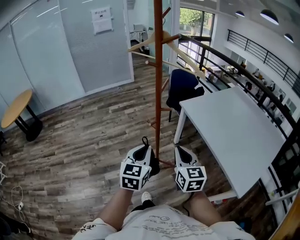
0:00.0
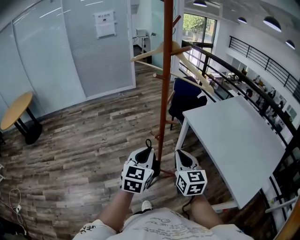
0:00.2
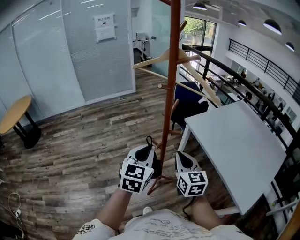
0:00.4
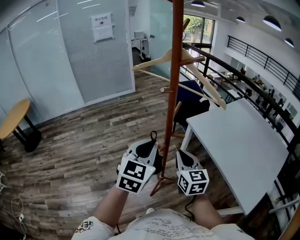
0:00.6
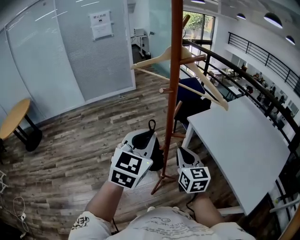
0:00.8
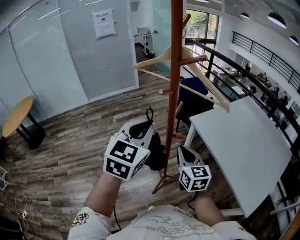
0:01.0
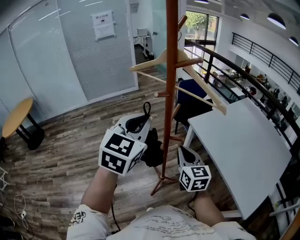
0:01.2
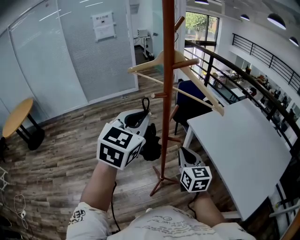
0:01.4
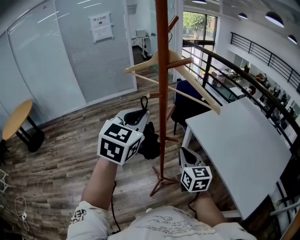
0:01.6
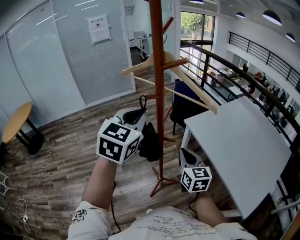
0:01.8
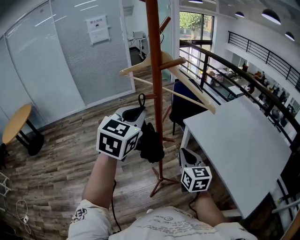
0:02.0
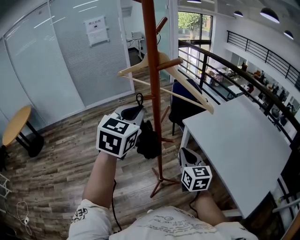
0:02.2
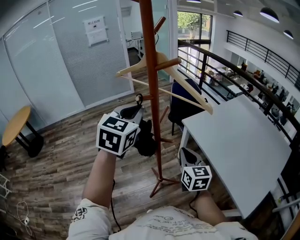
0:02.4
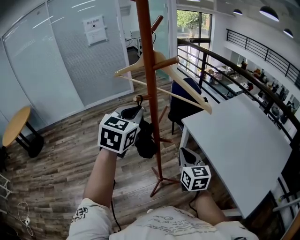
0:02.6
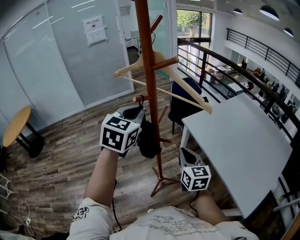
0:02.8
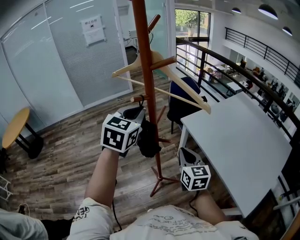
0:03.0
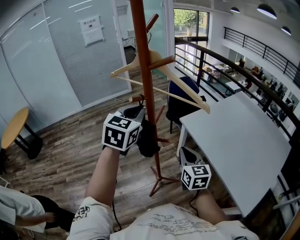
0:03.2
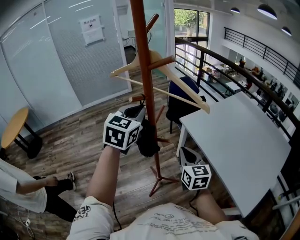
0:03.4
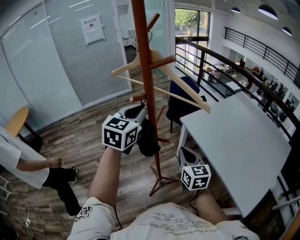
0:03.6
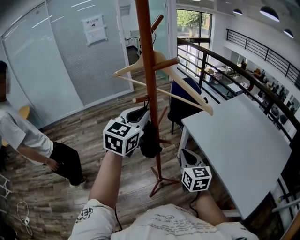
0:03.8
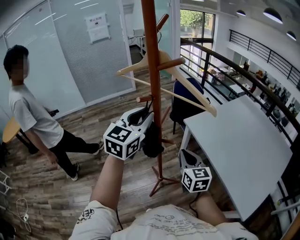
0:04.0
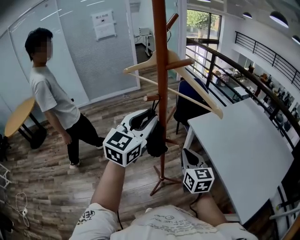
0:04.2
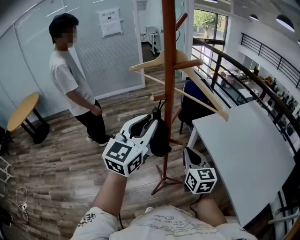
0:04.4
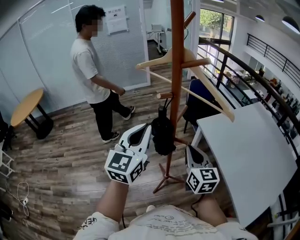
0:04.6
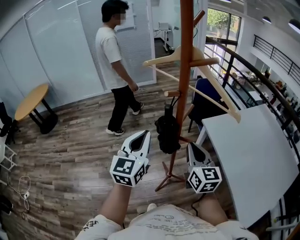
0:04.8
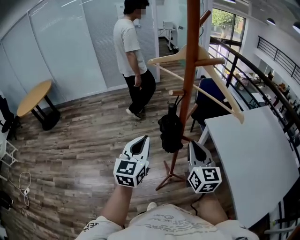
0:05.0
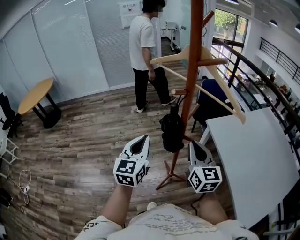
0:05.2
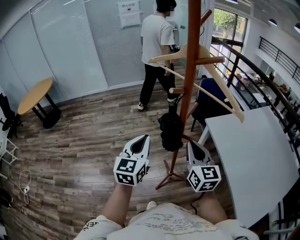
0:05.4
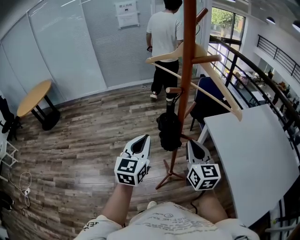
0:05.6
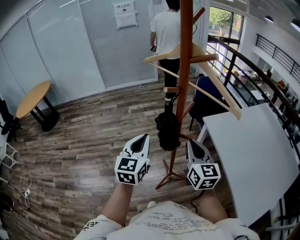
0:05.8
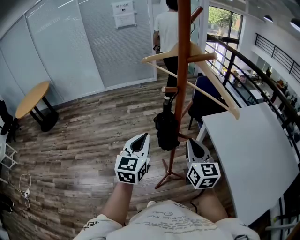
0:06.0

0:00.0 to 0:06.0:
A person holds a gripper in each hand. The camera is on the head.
0:00.0 to 0:01.6: The left gripper travels forward and upward by about 30 cm, while the right gripper shifts approximately 20 cm forward.
0:01.6 to 0:03.0: The left gripper moves forward, approximately 5 cm.
0:03.0 to 0:04.4: The left gripper travels backward by roughly 5 cm, and turns by approximately 20 degrees.
0:04.4 to 0:06.0: The left gripper goes roughly 15 cm downward and to the left, and swivels approximately 20 degrees.

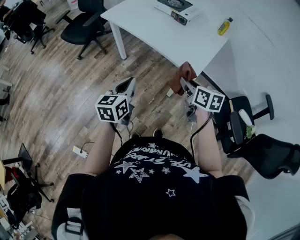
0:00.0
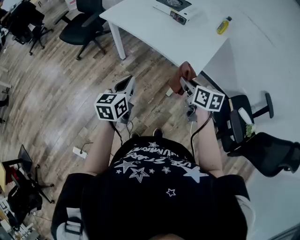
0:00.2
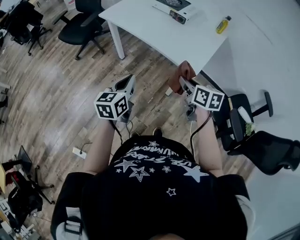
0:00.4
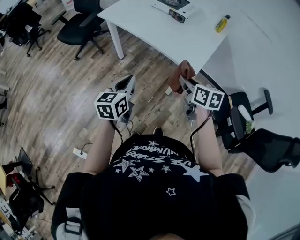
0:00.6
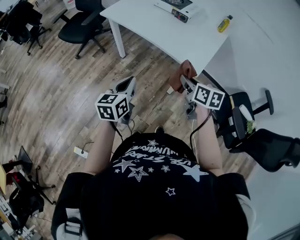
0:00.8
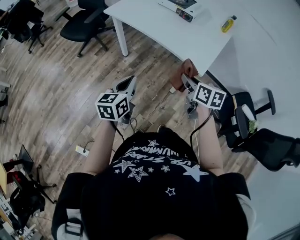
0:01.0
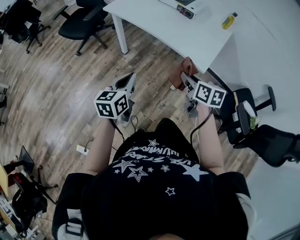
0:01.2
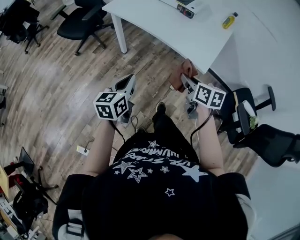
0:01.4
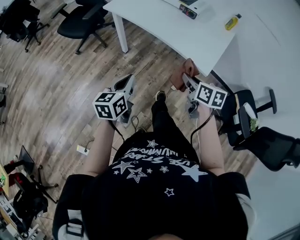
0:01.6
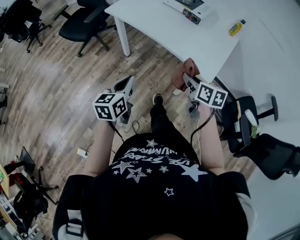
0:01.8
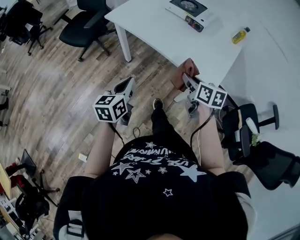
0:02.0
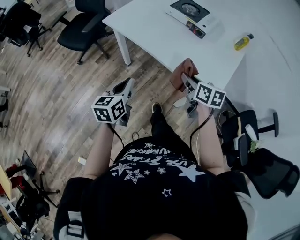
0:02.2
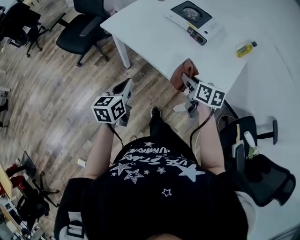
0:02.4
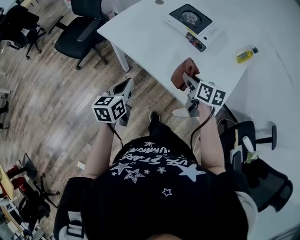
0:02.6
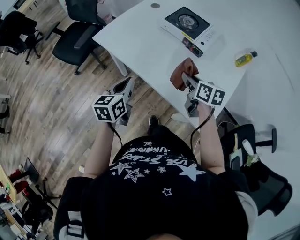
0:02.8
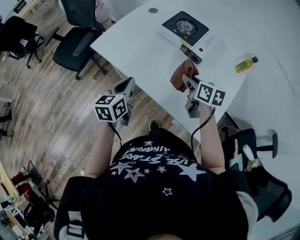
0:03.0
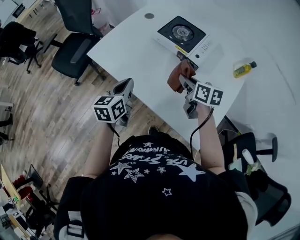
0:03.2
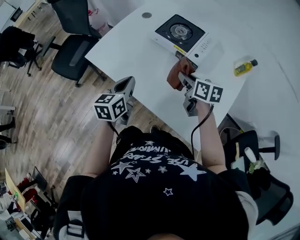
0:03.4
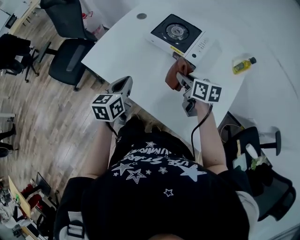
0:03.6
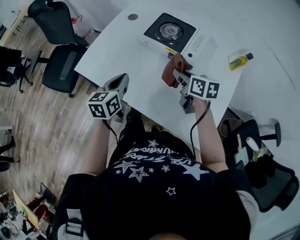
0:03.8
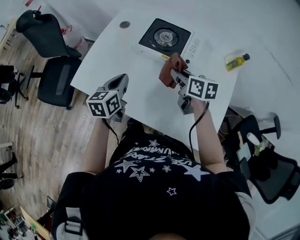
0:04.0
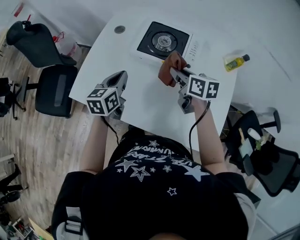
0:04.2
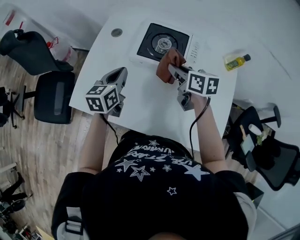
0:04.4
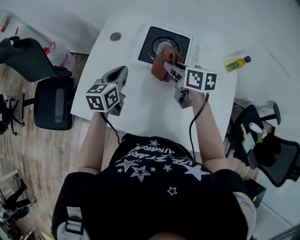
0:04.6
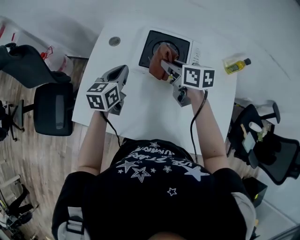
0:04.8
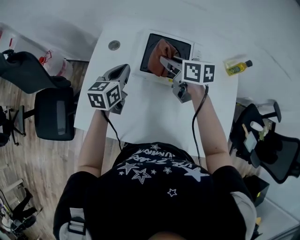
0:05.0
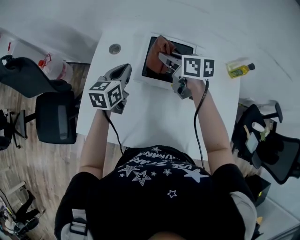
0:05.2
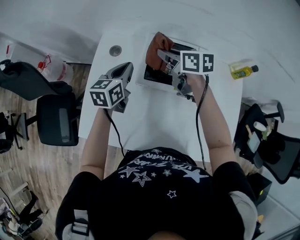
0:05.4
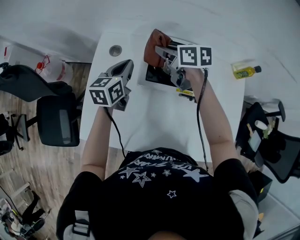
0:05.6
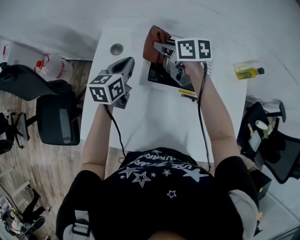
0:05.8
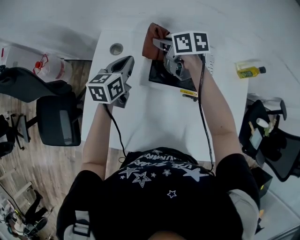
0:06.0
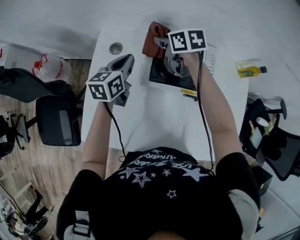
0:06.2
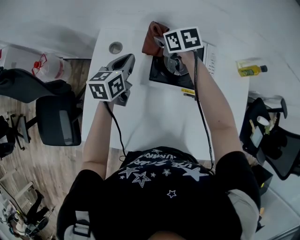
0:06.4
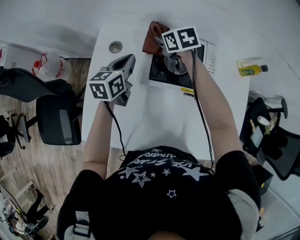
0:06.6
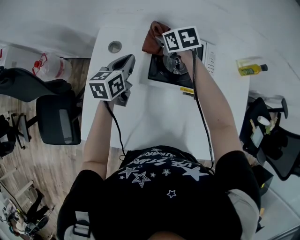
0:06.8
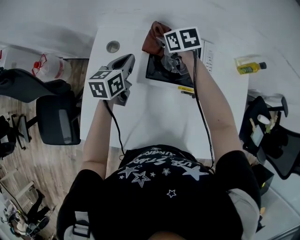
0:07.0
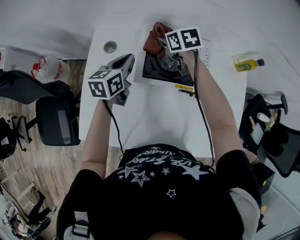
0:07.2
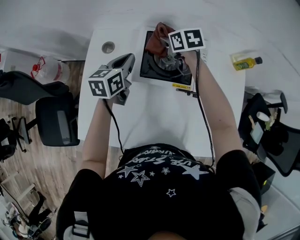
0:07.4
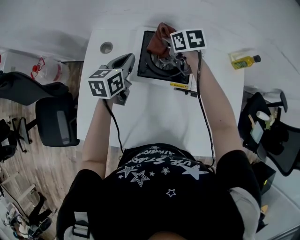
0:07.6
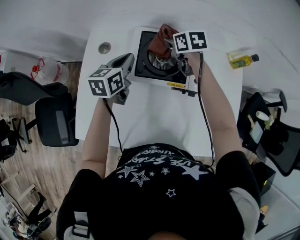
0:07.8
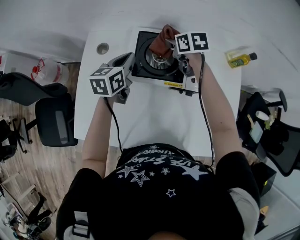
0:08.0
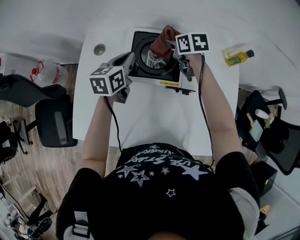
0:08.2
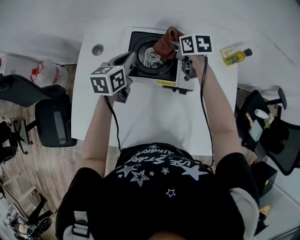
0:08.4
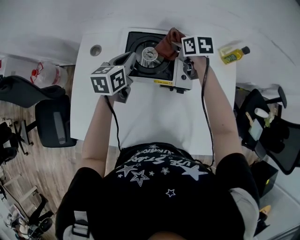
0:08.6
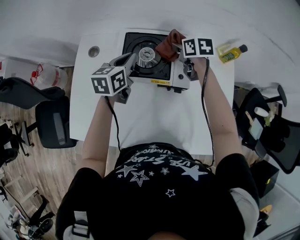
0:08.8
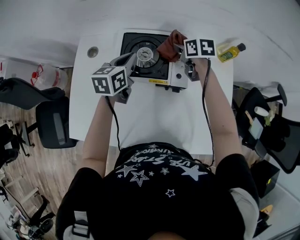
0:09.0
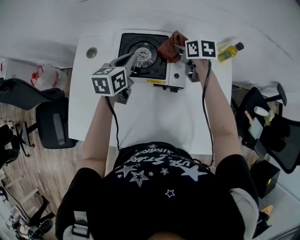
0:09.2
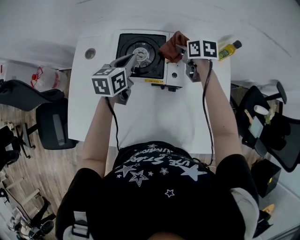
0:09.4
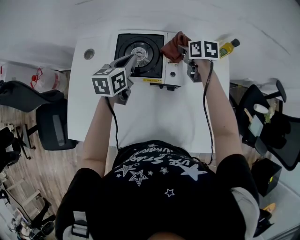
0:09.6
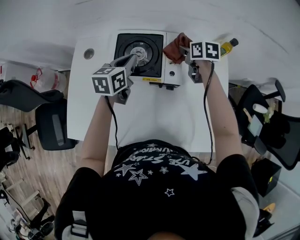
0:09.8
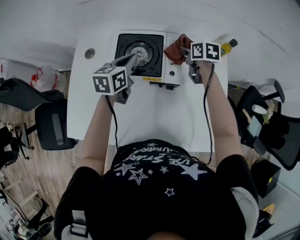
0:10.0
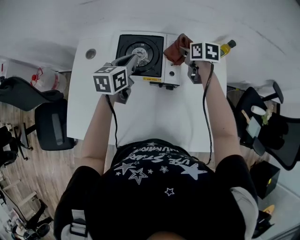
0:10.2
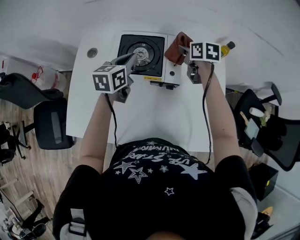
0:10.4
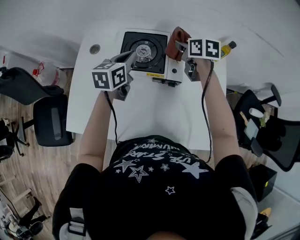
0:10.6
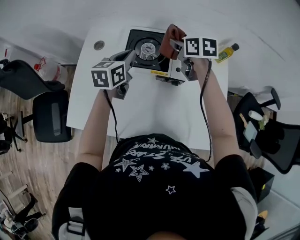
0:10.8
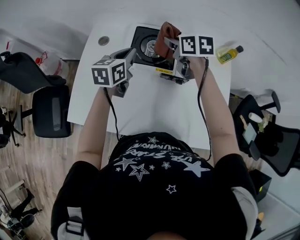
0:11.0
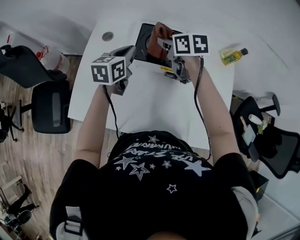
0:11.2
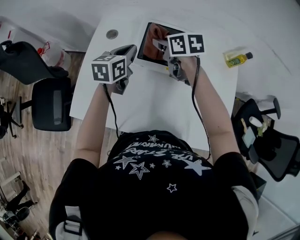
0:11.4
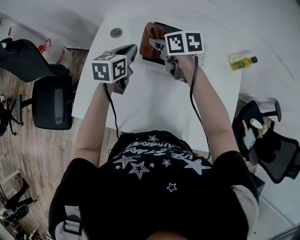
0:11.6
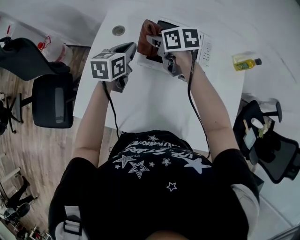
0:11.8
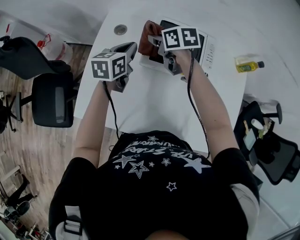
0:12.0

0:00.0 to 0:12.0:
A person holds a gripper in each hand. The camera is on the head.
0:00.0 to 0:01.6: The two grippers go approximately 10 cm to the left.
0:01.6 to 0:03.0: The grippers both shift forward by approximately 40 cm.
0:03.0 to 0:04.4: Both grippers move forward, approximately 25 cm. The left gripper turns by roughly 20 degrees.
0:04.4 to 0:06.0: Both grippers travel together forward, roughly 20 cm.
0:06.0 to 0:07.6: The left gripper heads to the right, covering roughly 5 cm. The right gripper moves to the right, some 10 cm.
0:07.6 to 0:09.0: Both grippers move to the right, approximately 10 cm.
0:09.0 to 0:10.4: The right gripper moves about 5 cm.
0:10.4 to 0:12.0: The right gripper is displaced to the left by about 30 cm, and turns by roughly 30 degrees. Meanwhile the left gripper shifts approximately 15 cm to the left.

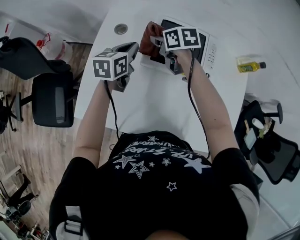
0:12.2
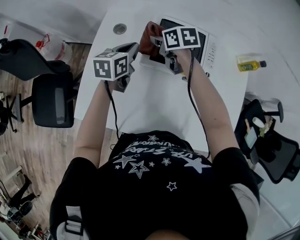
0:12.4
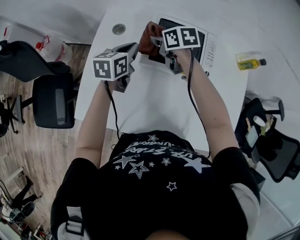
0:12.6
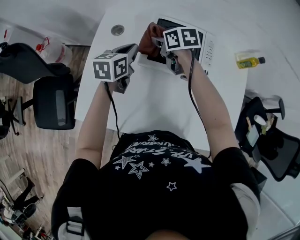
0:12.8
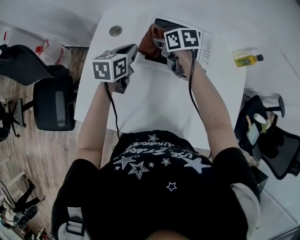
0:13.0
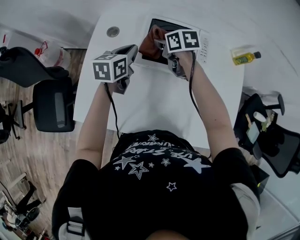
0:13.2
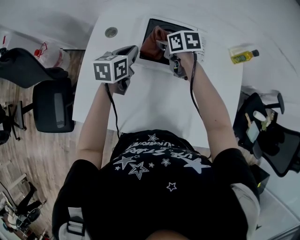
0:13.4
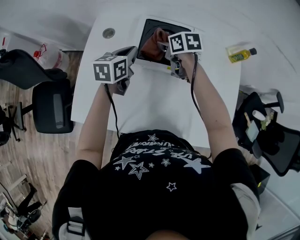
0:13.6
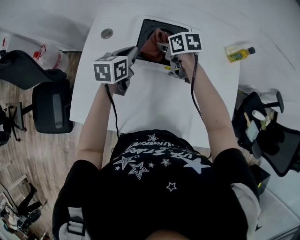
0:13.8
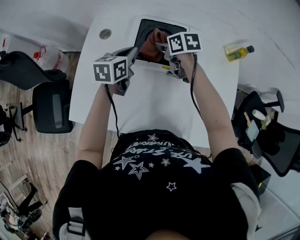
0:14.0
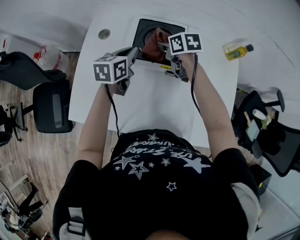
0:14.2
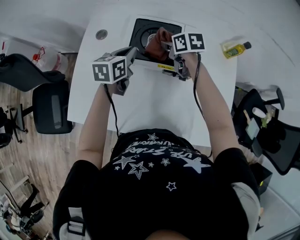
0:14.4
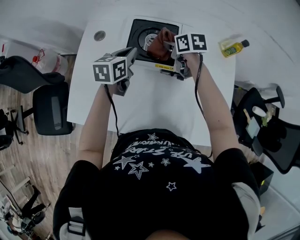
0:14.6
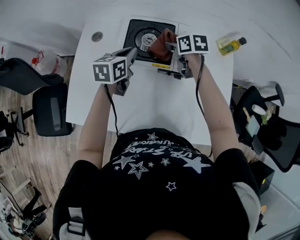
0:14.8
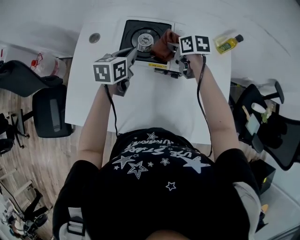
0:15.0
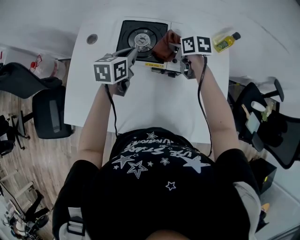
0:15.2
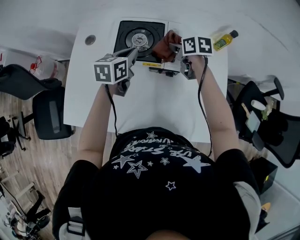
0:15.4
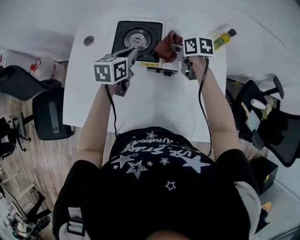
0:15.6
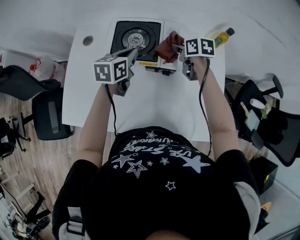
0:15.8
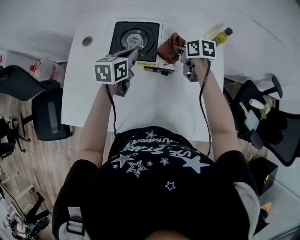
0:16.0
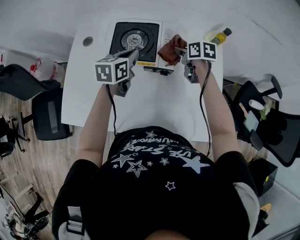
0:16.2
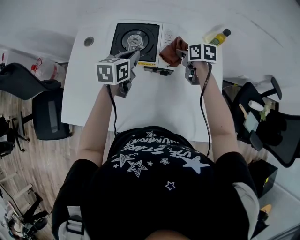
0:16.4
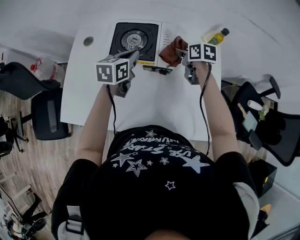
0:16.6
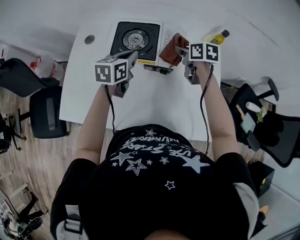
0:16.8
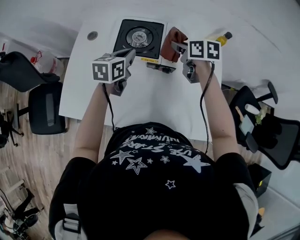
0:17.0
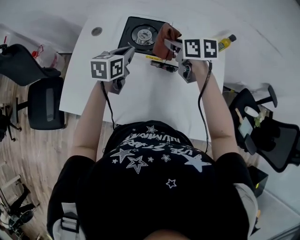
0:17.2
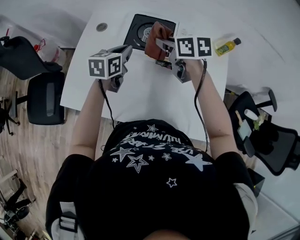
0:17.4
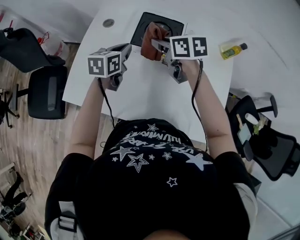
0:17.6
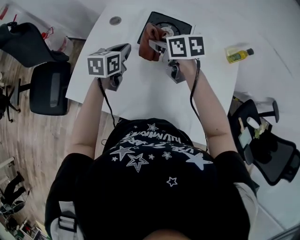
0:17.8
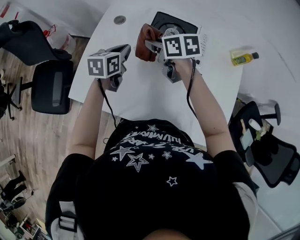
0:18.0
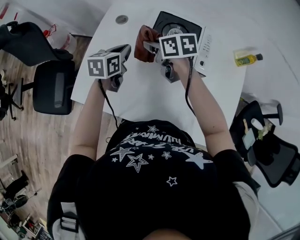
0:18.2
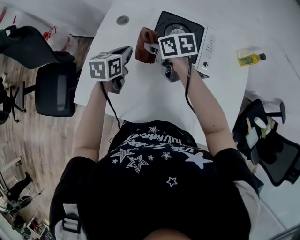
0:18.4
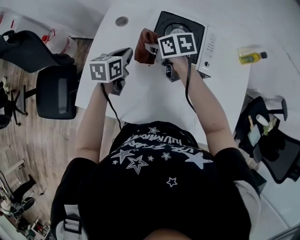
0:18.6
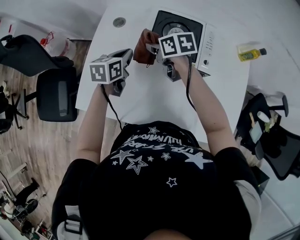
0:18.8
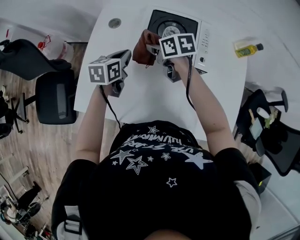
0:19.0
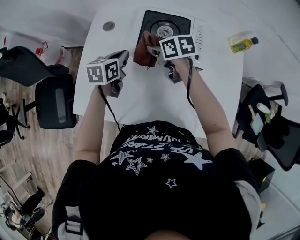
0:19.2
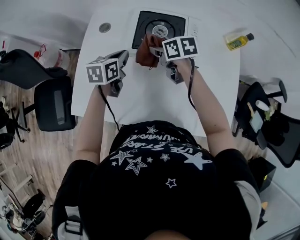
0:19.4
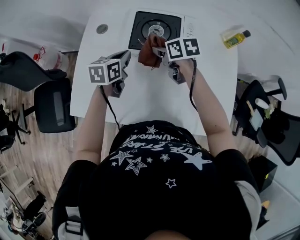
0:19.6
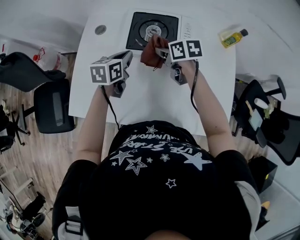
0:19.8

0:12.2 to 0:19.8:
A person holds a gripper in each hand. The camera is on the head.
0:12.2 to 0:13.8: The grippers both shift to the right by some 10 cm.
0:13.8 to 0:15.2: The left gripper travels to the right by roughly 10 cm, while the right gripper is displaced to the right by some 15 cm.
0:15.2 to 0:16.8: The left gripper changes place by approximately 5 cm; the right gripper goes some 5 cm to the right.
0:16.8 to 0:18.2: The left gripper goes some 20 cm to the left; the right gripper moves to the left, roughly 30 cm, and changes its angle by roughly 30 degrees.
0:18.2 to 0:19.8: The right gripper travels to the right by some 15 cm. The left gripper moves to the right, about 10 cm.
